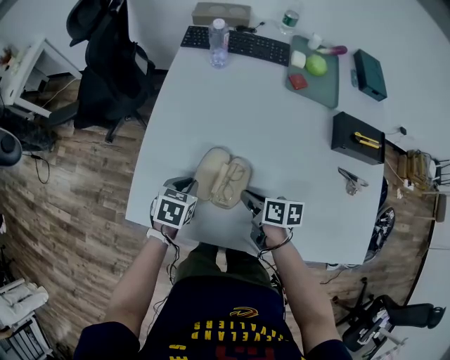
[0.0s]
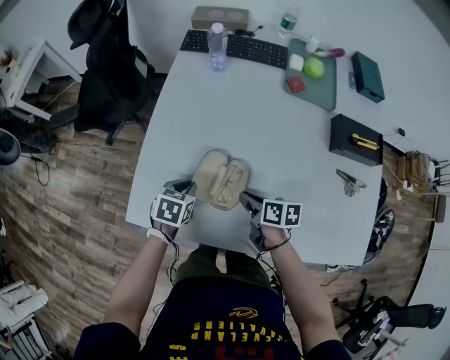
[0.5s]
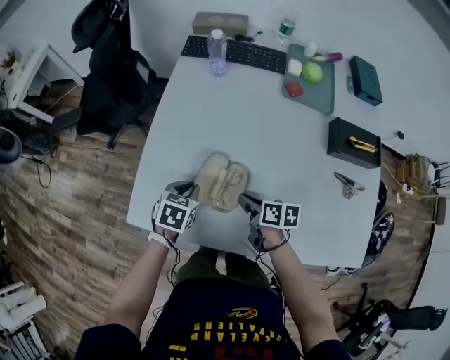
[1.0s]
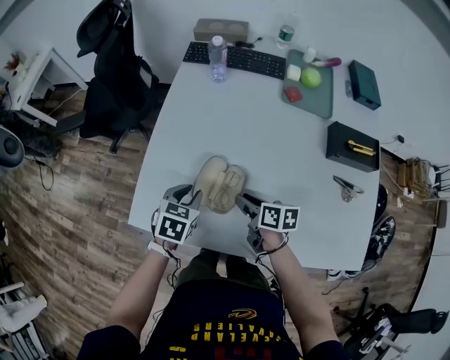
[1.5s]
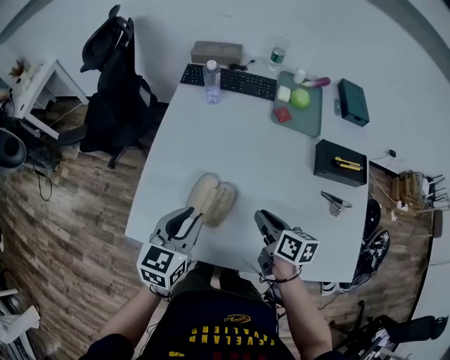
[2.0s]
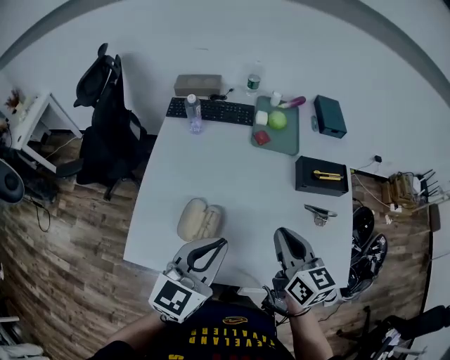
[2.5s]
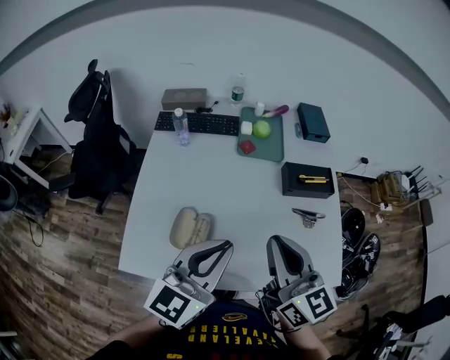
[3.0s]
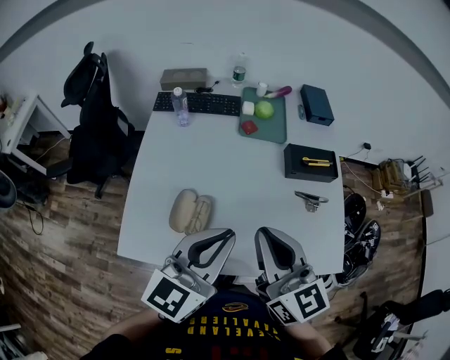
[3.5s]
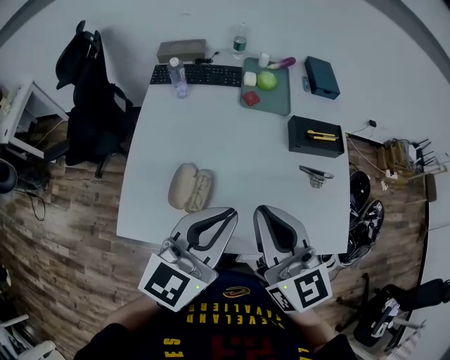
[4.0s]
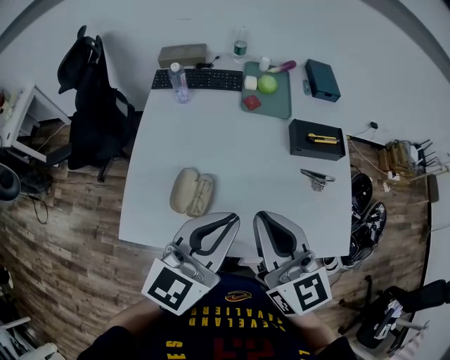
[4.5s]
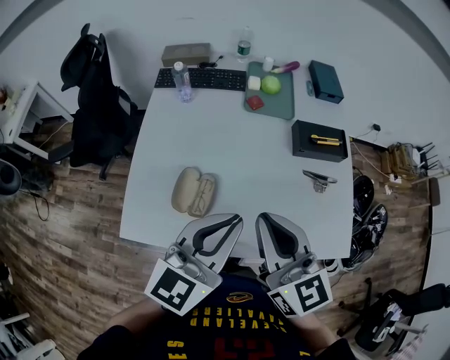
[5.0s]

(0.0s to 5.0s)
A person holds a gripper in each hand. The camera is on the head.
0.0s - 2.5s: The grippers both shift upward and to the right by roughly 35 cm. The left gripper angles its fingers upward, by approximately 50 degrees. The right gripper rotates approximately 50 degrees.
2.5s - 5.0s: The left gripper changes place by approximately 5 cm. The right gripper goes about 10 cm upward and backward.

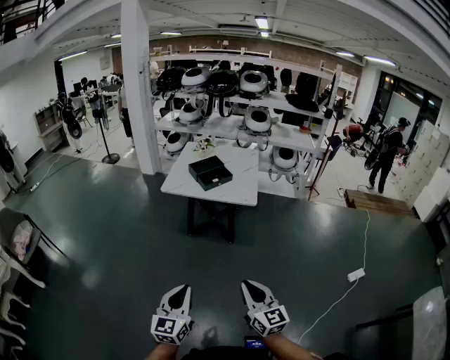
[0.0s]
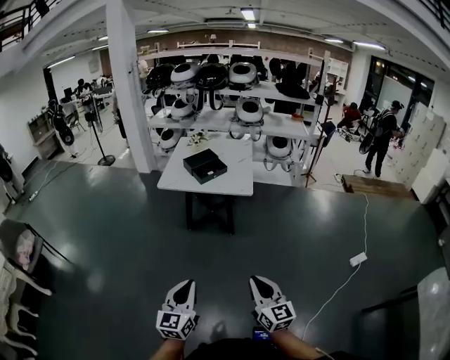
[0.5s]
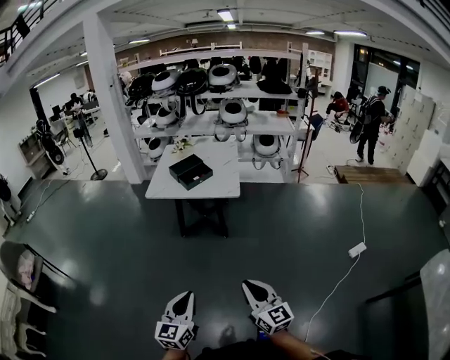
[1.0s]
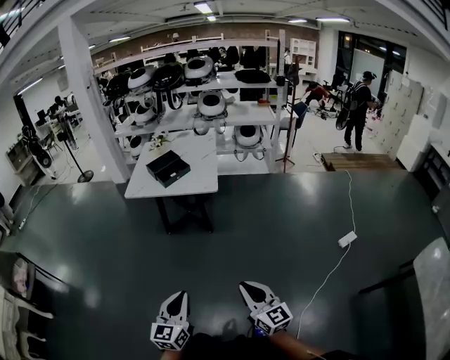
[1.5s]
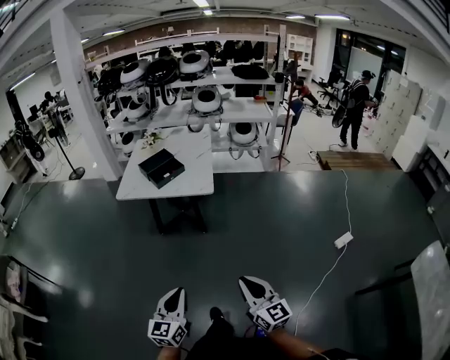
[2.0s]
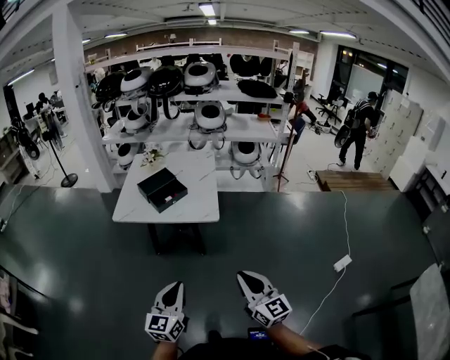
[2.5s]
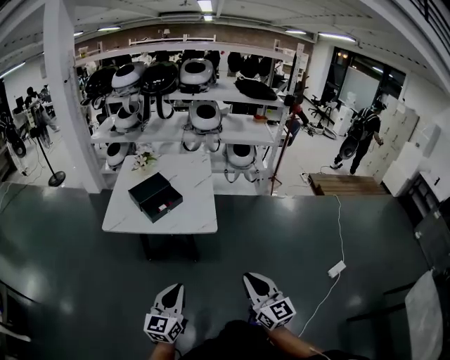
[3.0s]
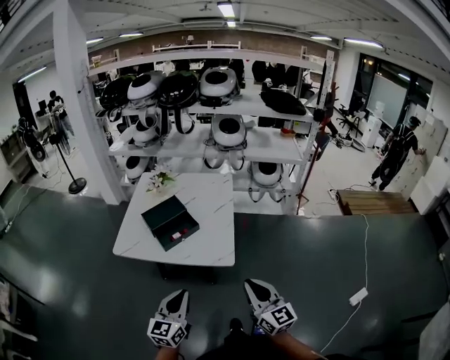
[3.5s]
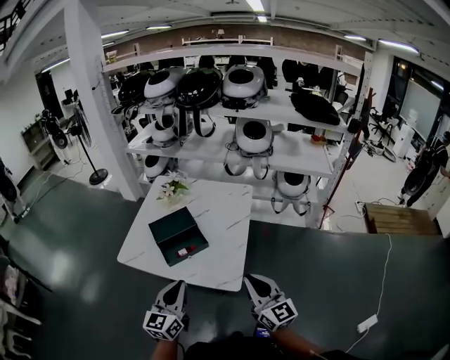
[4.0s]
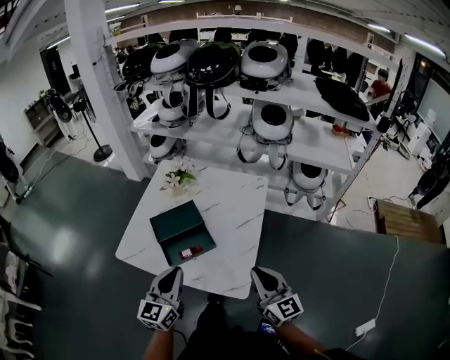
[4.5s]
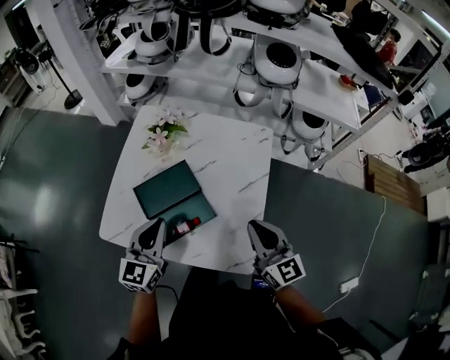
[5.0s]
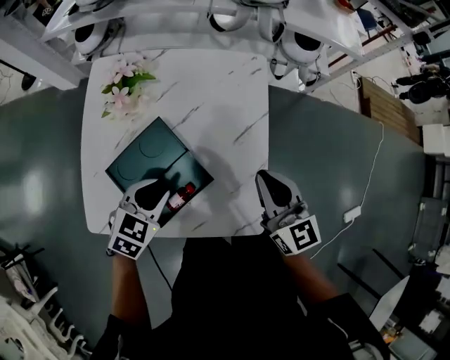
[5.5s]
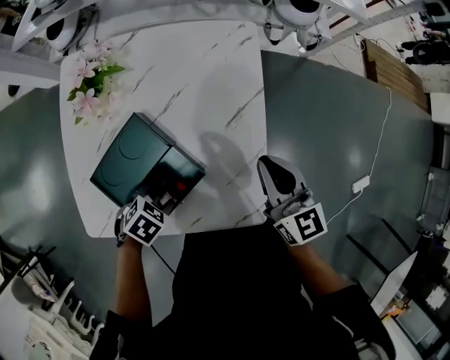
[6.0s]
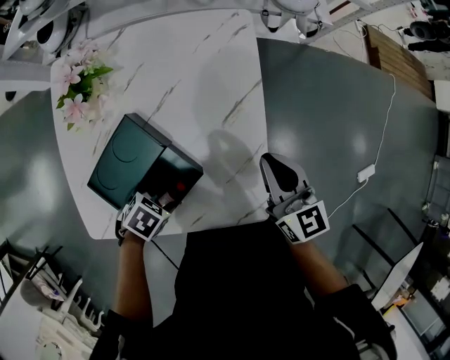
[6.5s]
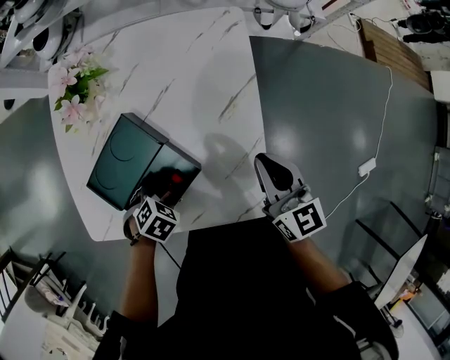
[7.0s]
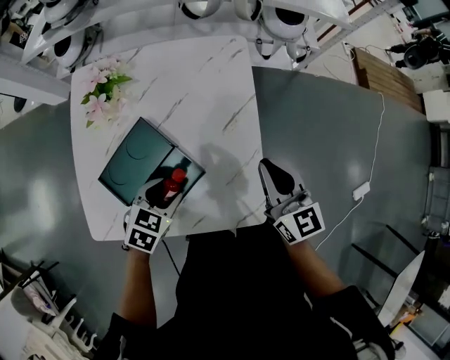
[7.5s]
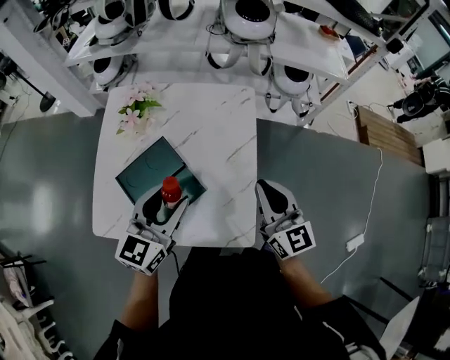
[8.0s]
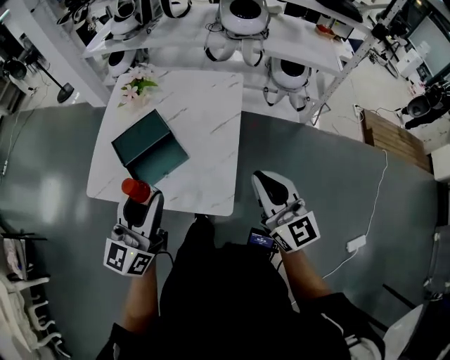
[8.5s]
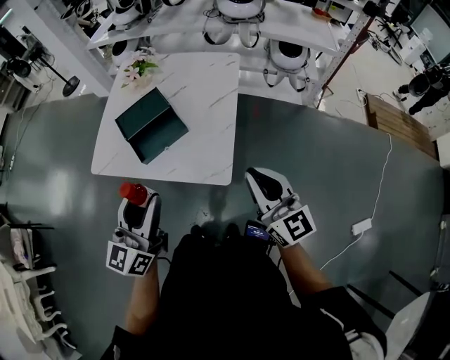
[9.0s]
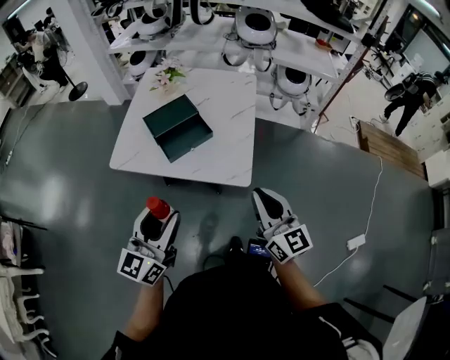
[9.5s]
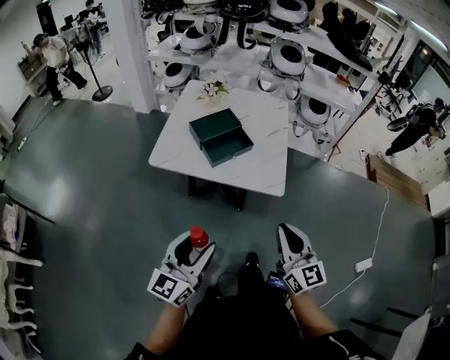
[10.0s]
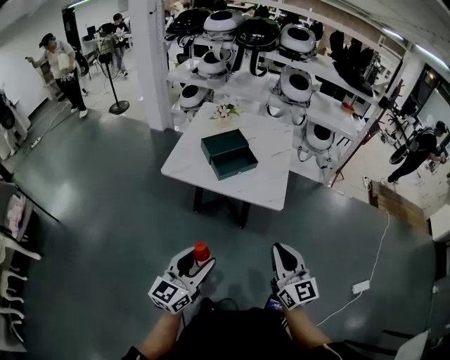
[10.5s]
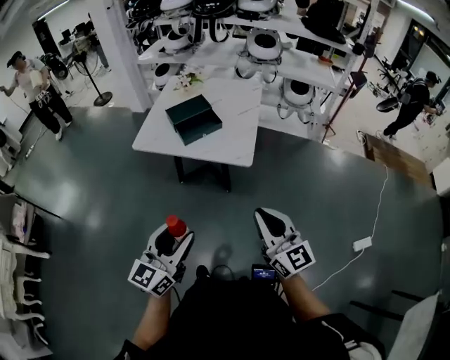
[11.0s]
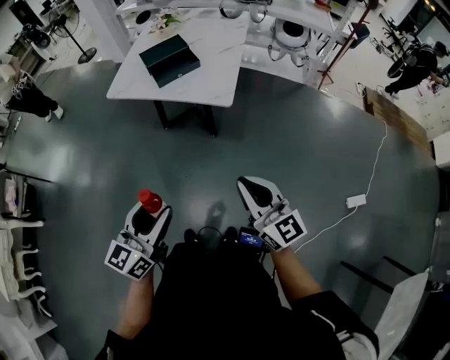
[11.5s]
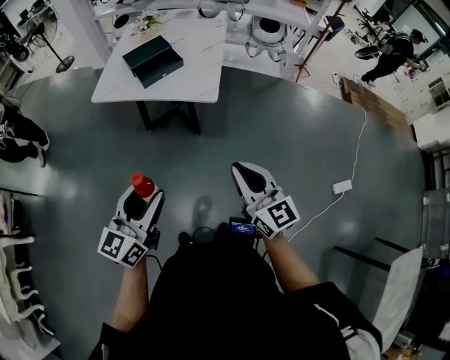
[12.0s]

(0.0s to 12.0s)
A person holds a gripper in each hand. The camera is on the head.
0.0s - 2.0s: The two grippers go about 15 cm to the right.
2.0s - 4.0s: The pair of grippers is taken forward, approximately 50 cm.
4.0s - 6.0s: The right gripper moves about 30 cm, and swivels some 30 degrees. The left gripper shifts roughly 30 cm downward, points its fingers approximately 70 degrees further downward, and opens.
6.0s - 8.0s: The right gripper travels upward by approximately 10 cm. Meanwhile the left gripper moves upward, about 25 cm, and points its fingers about 60 degrees further upward.
8.0s - 10.0s: The two grippers travel together, backward, roughly 50 cm.
10.0s - 12.0s: Both grippers move backward and to the right, some 20 cm.

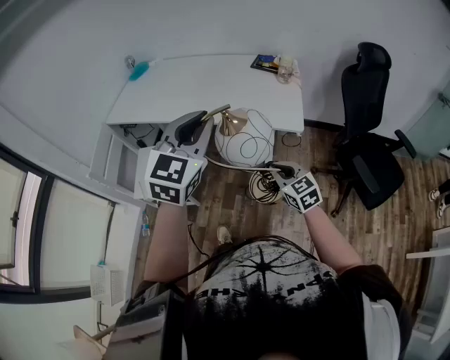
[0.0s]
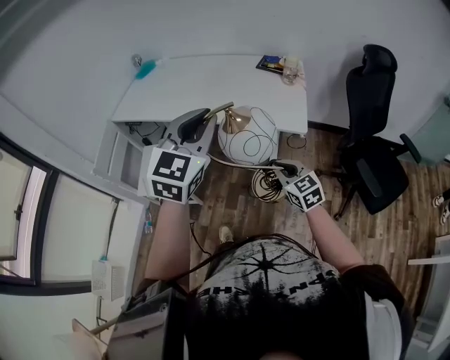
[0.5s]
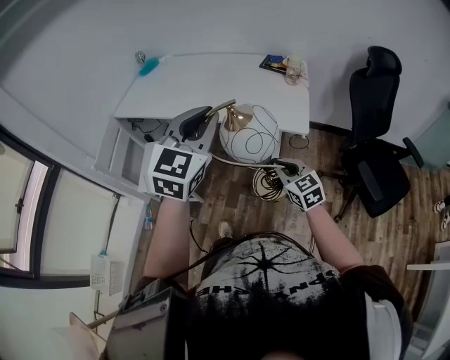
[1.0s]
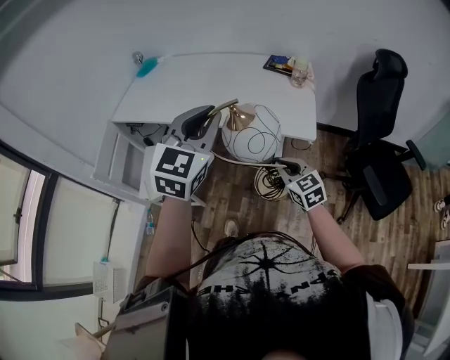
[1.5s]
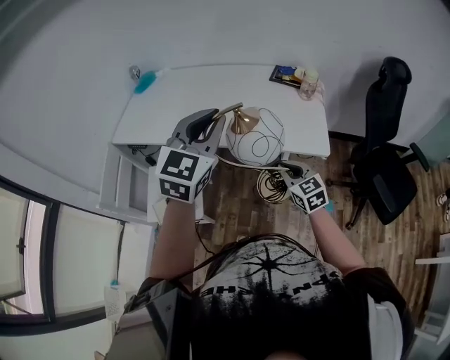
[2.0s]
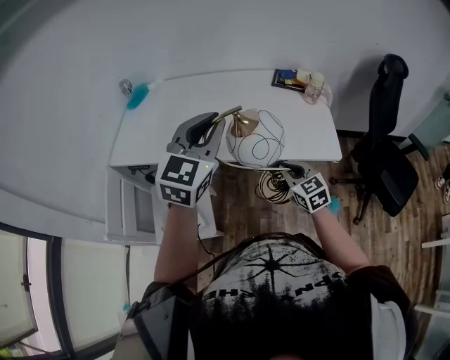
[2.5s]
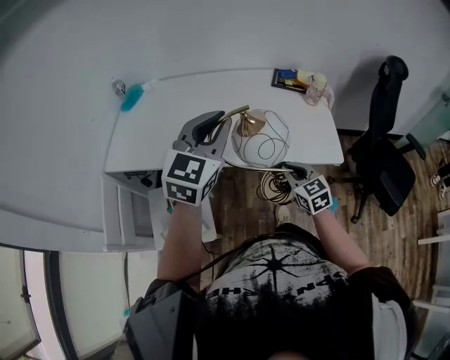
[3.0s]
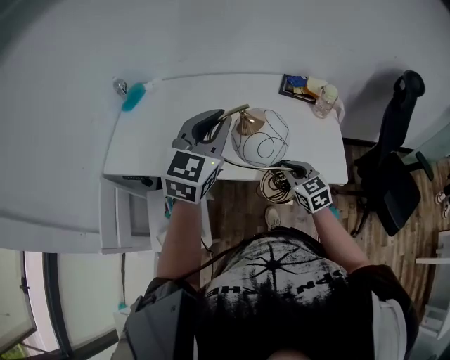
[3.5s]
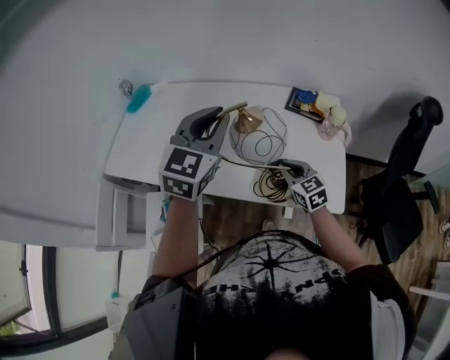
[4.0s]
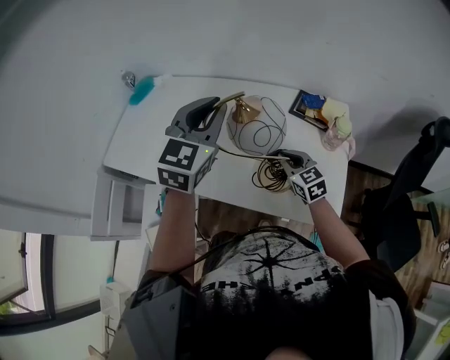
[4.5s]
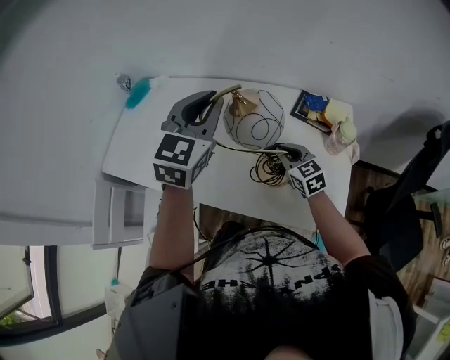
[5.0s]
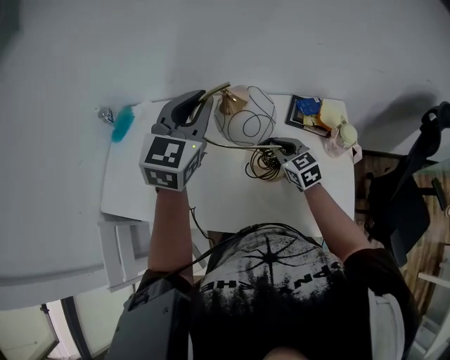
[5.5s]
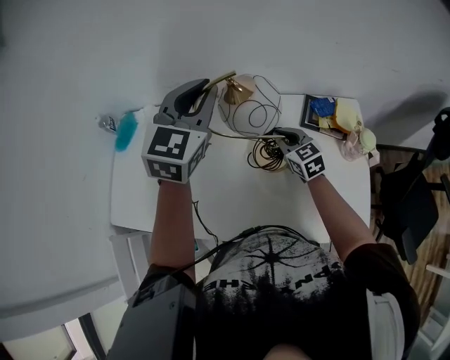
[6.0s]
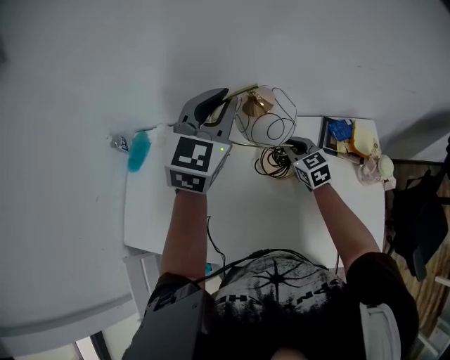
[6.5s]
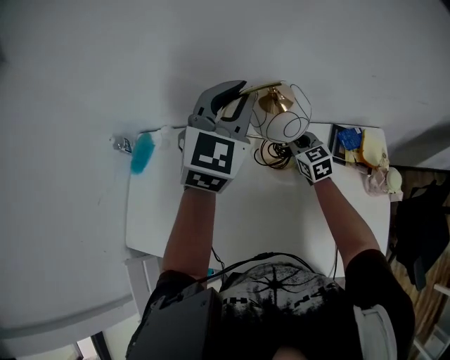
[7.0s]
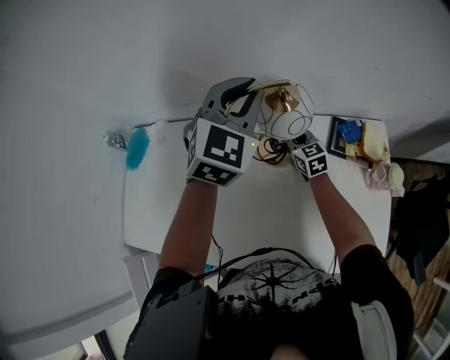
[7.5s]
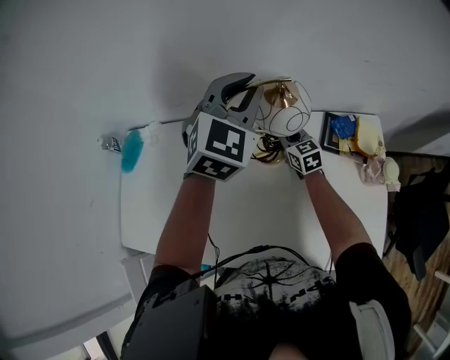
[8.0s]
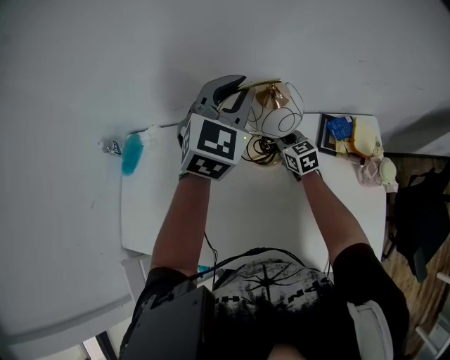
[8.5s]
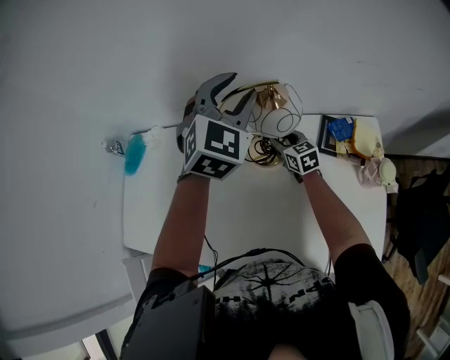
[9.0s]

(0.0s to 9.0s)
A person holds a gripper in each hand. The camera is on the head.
0.0s - 2.0s: The grippers both shift forward by about 15 cm.
2.0s - 4.5s: Both grippers travel together forward, approximately 35 cm.
4.5s - 7.0s: The two grippers go roughly 30 cm forward.
7.0s - 9.0s: The left gripper changes place by approximately 5 cm, and opens, while the right gripper goes roughly 5 cm downward, and opens its fingers.

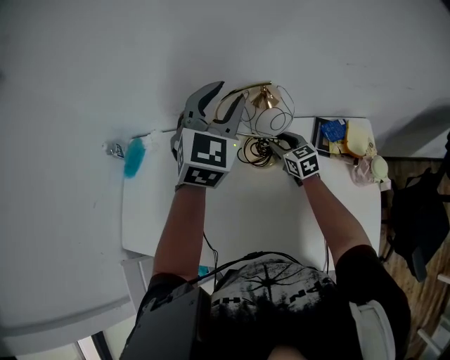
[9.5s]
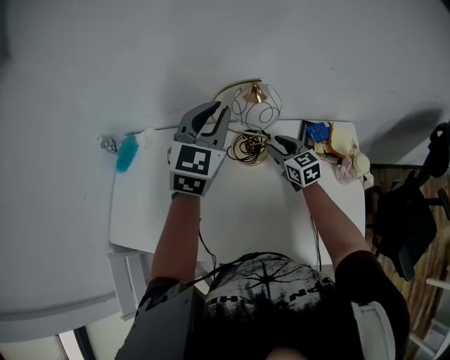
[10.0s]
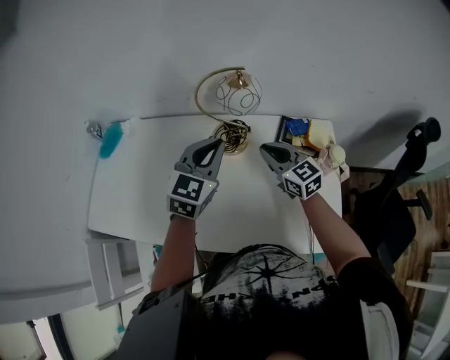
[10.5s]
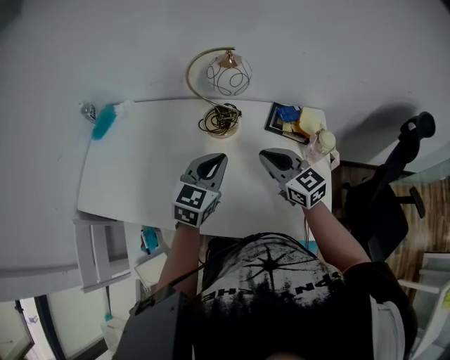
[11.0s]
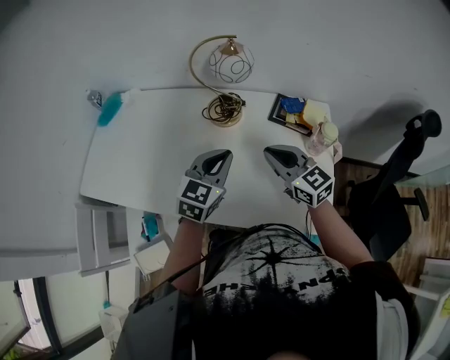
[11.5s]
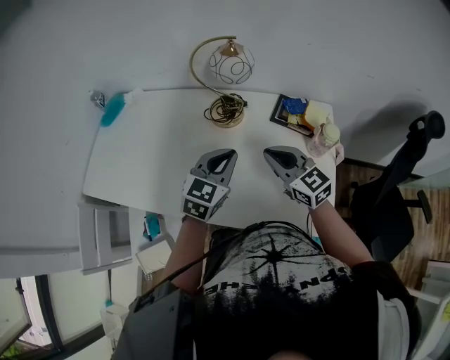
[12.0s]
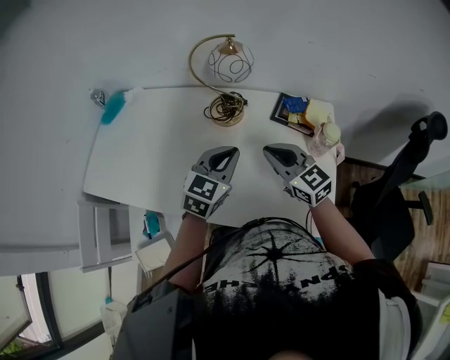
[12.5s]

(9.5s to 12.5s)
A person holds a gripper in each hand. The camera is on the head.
9.5s - 11.0s: The left gripper travels backward and downward by approximately 30 cm, rotates roughly 30 degrees, and closes its fingers. The right gripper travels backward and upward by roughly 30 cm, turns by some 20 degrees, and closes.
11.0s - 12.5s: There are only small adjustments of the grippers.
